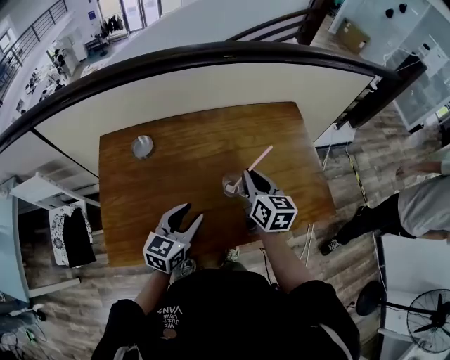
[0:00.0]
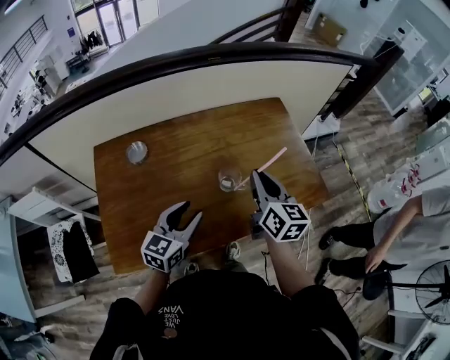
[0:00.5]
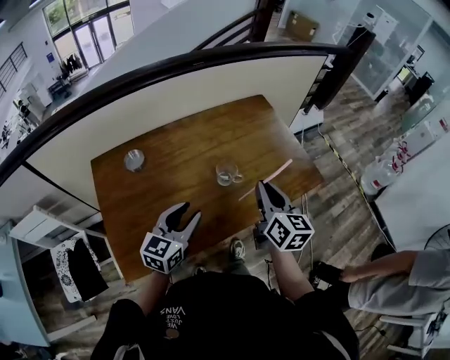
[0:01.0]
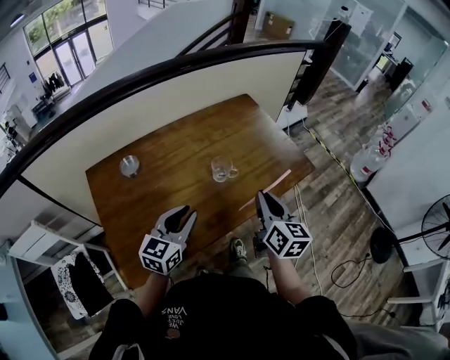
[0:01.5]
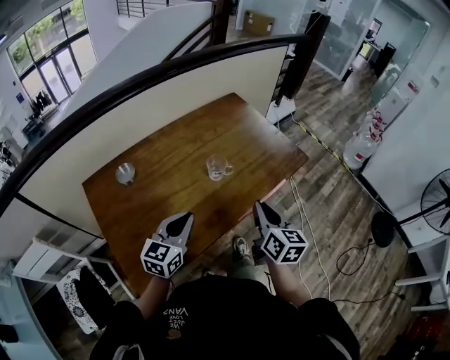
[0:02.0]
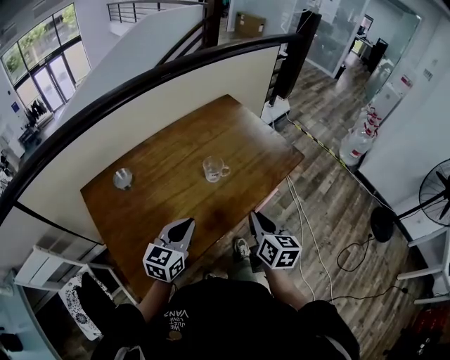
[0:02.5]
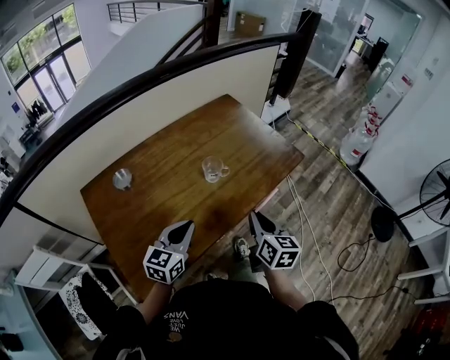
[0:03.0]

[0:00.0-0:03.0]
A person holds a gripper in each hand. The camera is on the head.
0:00.0 to 0:01.5: The left gripper moves backward, roughly 5 cm. Meanwhile the right gripper heads backward, covering approximately 20 cm, and turns by about 30 degrees.
0:01.5 to 0:03.0: The right gripper travels downward and backward by about 10 cm.

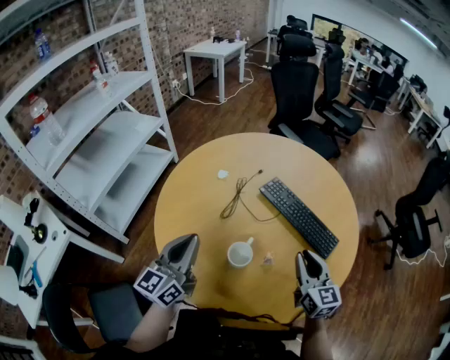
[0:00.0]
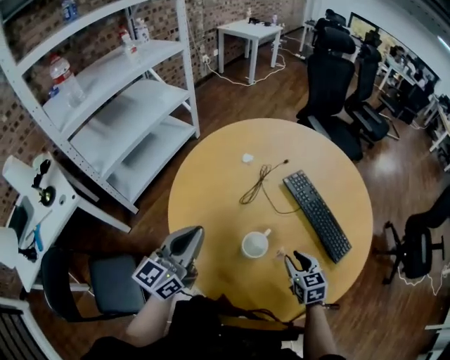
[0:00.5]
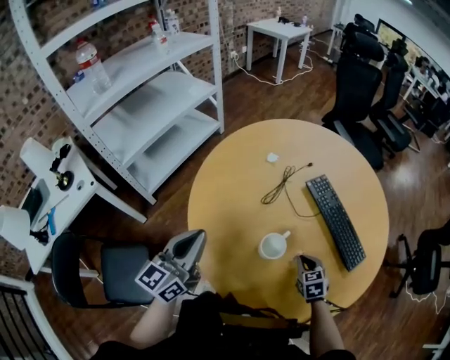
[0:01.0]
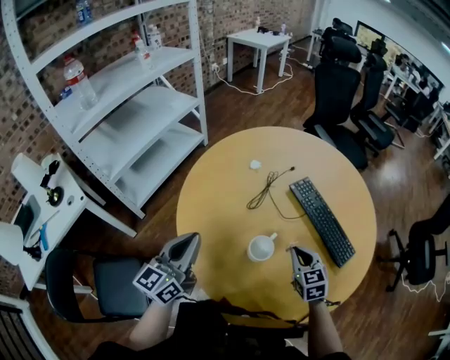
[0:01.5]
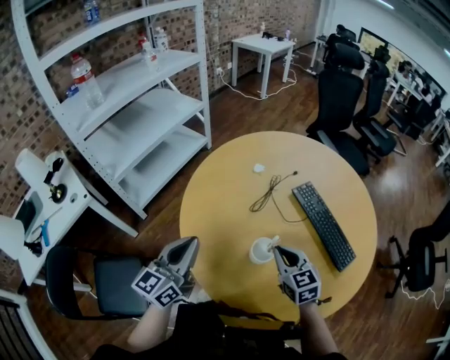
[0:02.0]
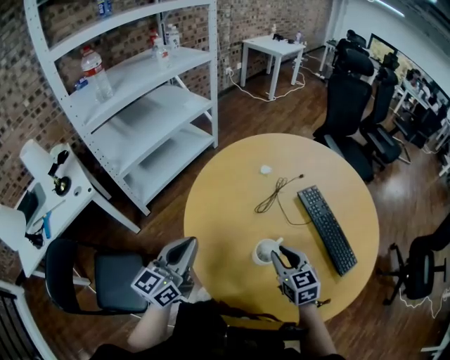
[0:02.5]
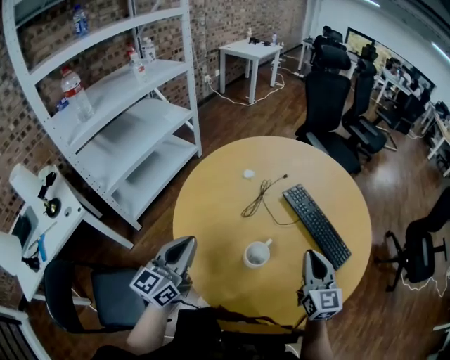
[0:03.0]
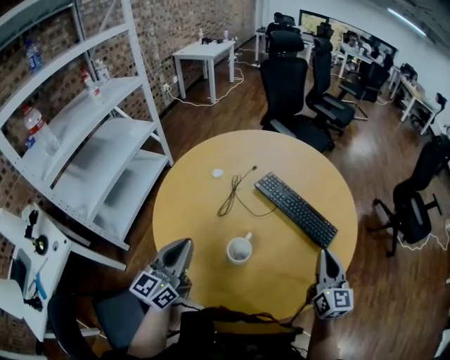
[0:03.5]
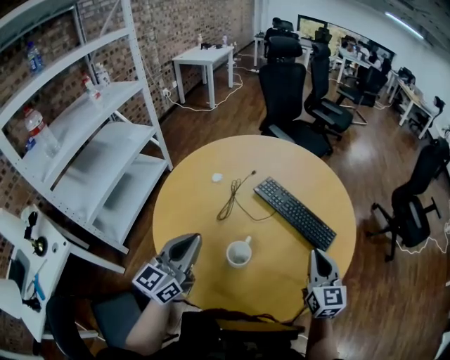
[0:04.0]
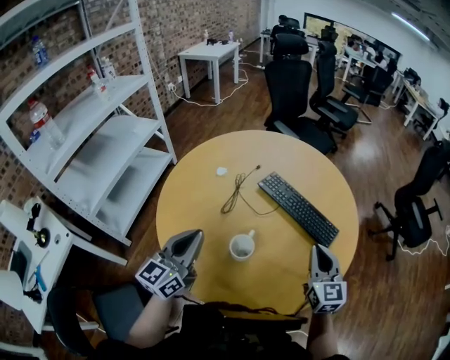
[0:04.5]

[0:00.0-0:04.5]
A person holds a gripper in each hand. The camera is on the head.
0:00.0 to 0:02.0: The right gripper is displaced to the left by roughly 15 cm, goes downward and returns, about 20 cm each way, and changes its angle by about 30 degrees; the left gripper moves to the left, some 5 cm.
0:02.0 to 0:04.5: The left gripper ends up roughly 10 cm from where it was, while the right gripper changes place by some 20 cm, swivels approximately 40 degrees, and opens, then closes once more.

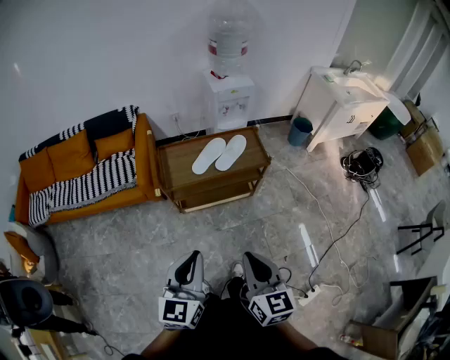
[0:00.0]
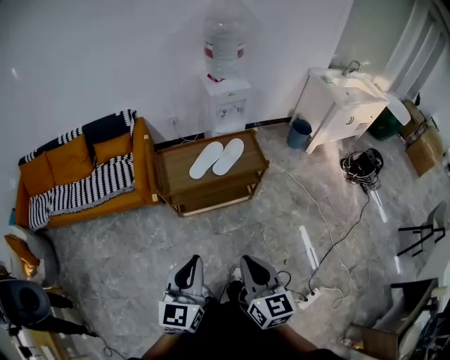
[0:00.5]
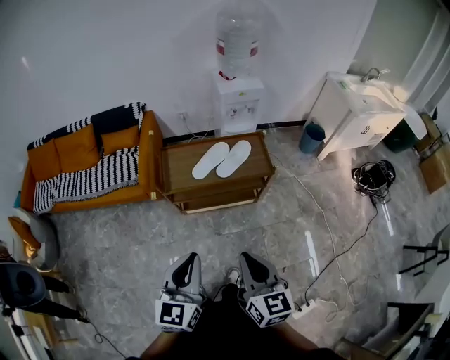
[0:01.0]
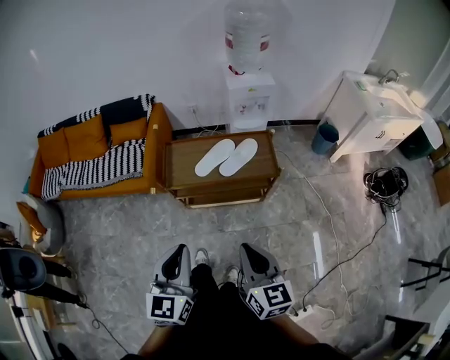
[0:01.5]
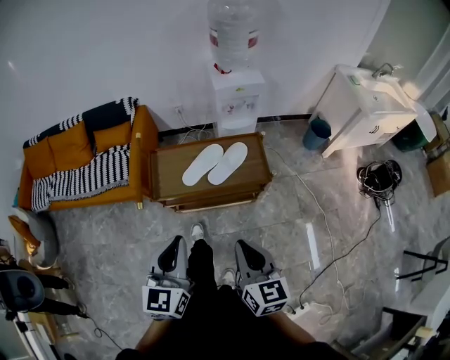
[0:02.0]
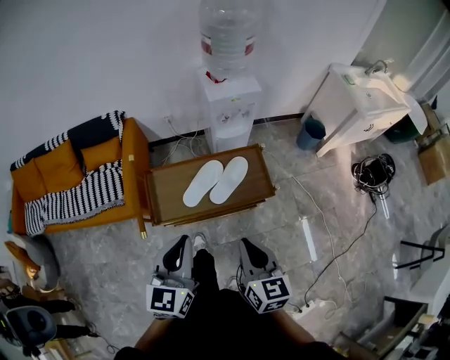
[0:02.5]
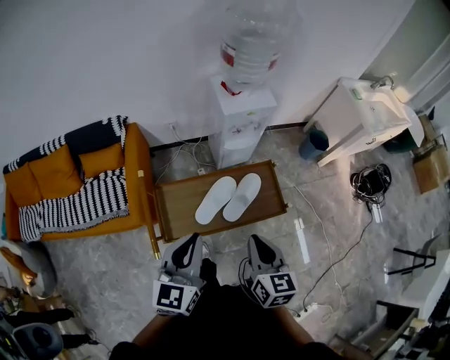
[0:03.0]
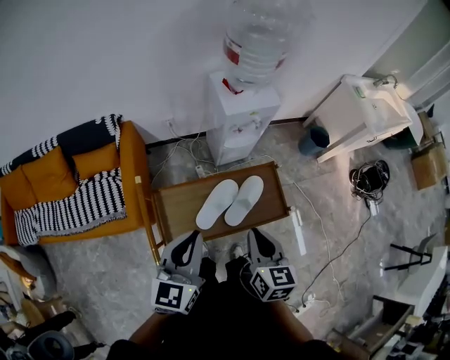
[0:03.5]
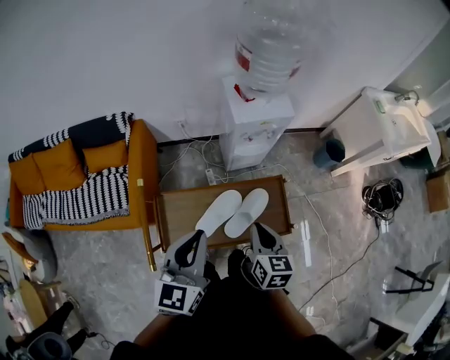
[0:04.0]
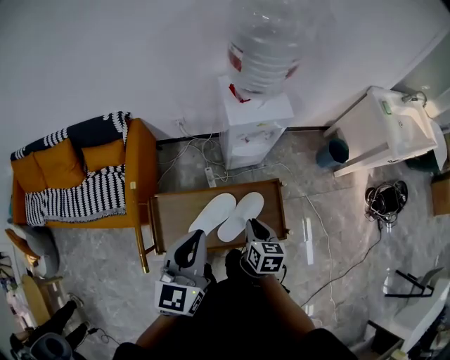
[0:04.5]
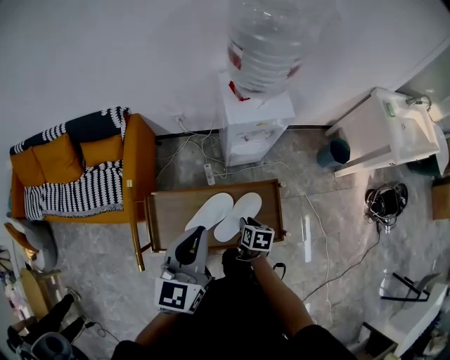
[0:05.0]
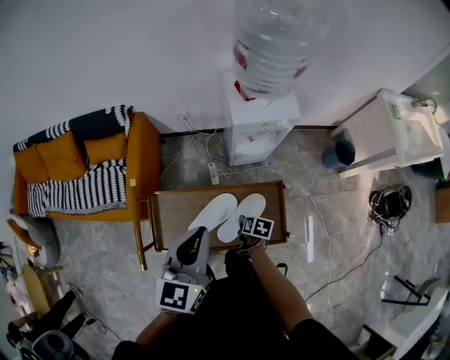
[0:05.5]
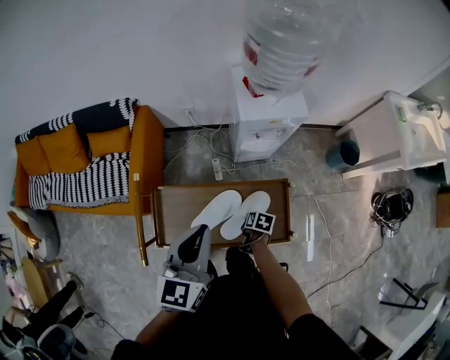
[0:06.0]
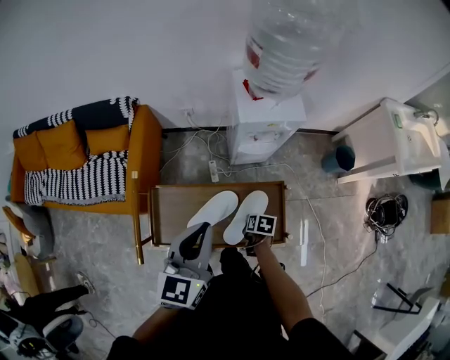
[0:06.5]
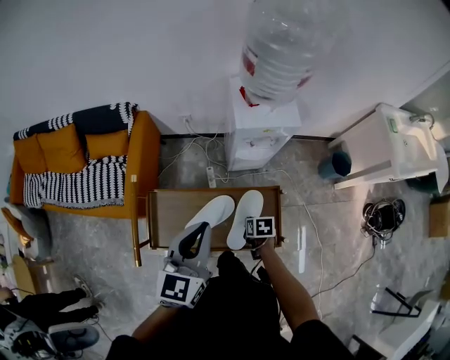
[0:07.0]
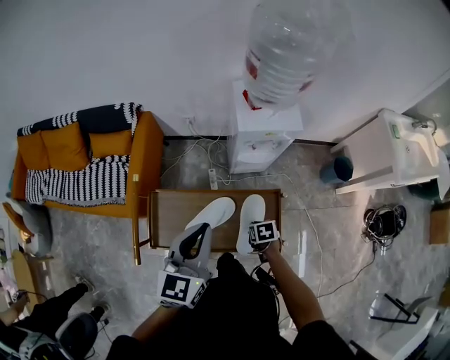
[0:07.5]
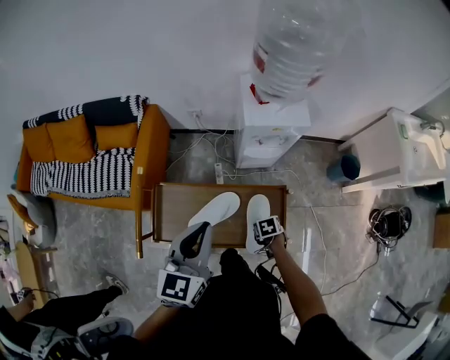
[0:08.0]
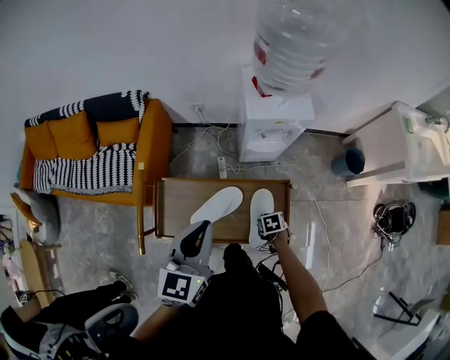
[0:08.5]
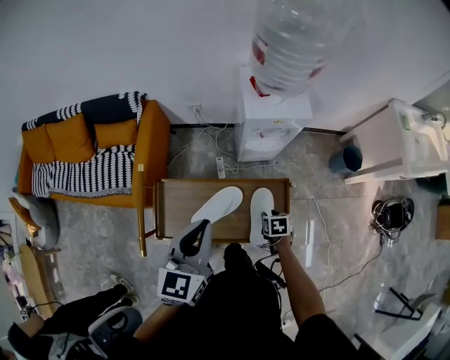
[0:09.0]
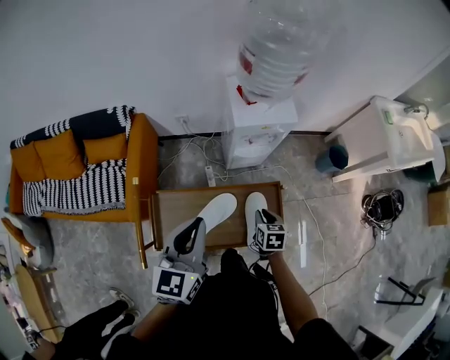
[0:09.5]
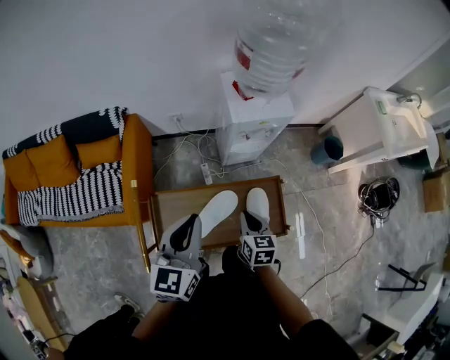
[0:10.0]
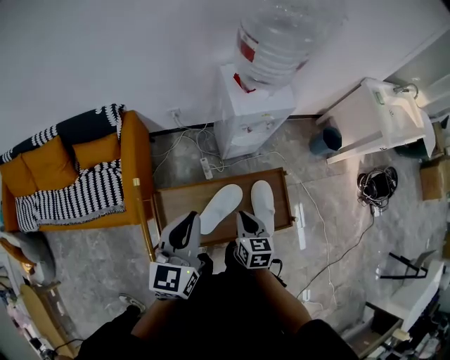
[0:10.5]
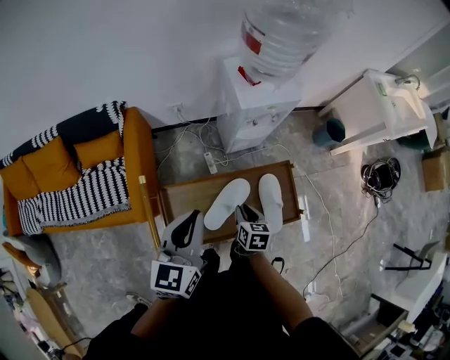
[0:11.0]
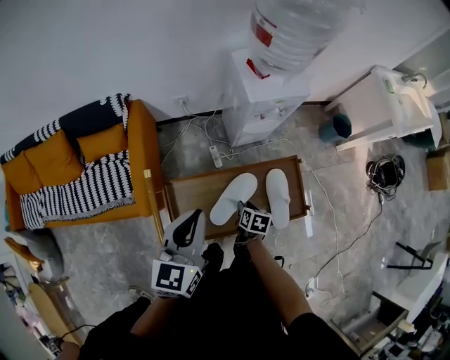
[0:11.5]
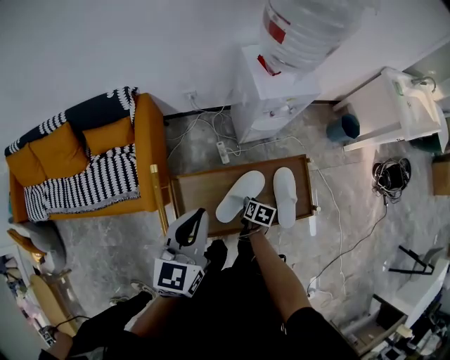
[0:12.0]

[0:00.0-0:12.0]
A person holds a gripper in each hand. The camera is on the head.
0:00.0 to 0:02.0: Both grippers move forward and to the right, roughly 20 cm.
0:02.0 to 0:04.0: The grippers both shift forward by roughly 35 cm.
0:04.0 to 0:06.0: The right gripper shifts roughly 30 cm downward, tips its fingers downward by approximately 40 degrees, and opens and closes again, while the left gripper heads forward, covering some 5 cm.
0:06.0 to 0:08.0: The right gripper changes place by about 5 cm, and changes its angle by some 40 degrees.
0:08.0 to 0:10.0: The right gripper shifts approximately 20 cm upward, angles its fingers upward, by approximately 40 degrees, and opens, then closes once more; the left gripper shifts by some 5 cm.
0:10.0 to 0:12.0: The left gripper shifts about 10 cm to the left. Meanwhile the right gripper shifts roughly 20 cm downward, turns by approximately 40 degrees, and opens.

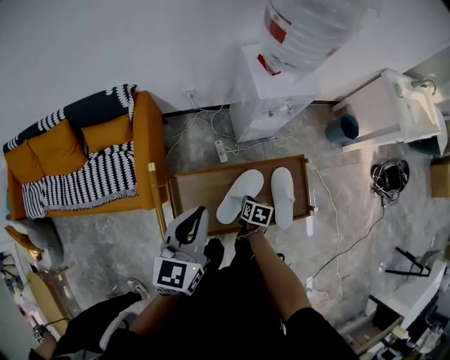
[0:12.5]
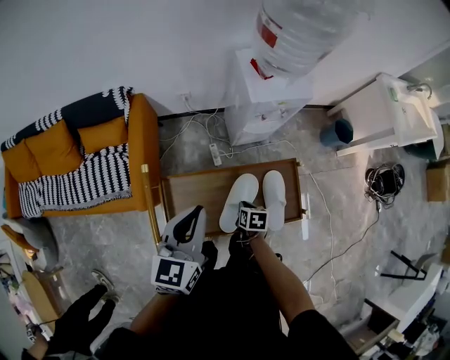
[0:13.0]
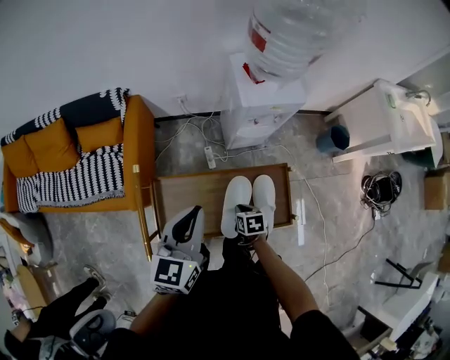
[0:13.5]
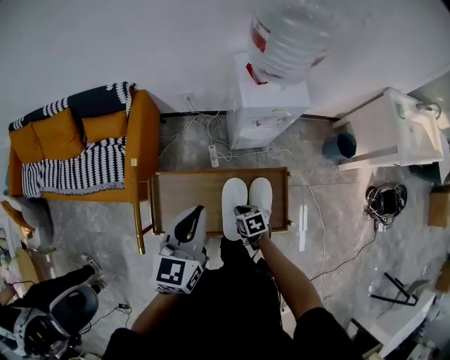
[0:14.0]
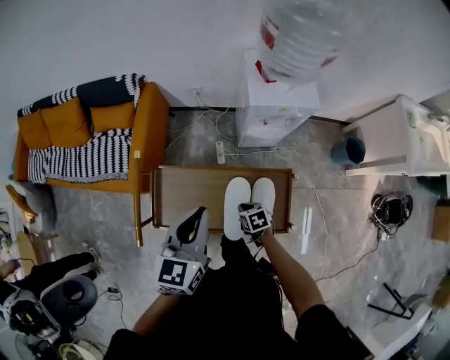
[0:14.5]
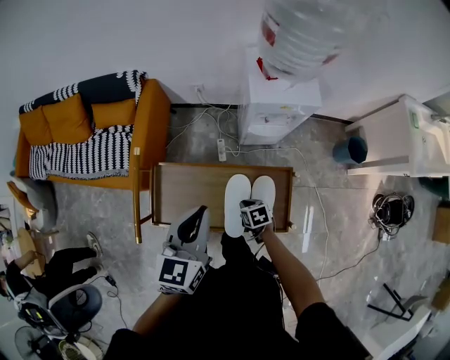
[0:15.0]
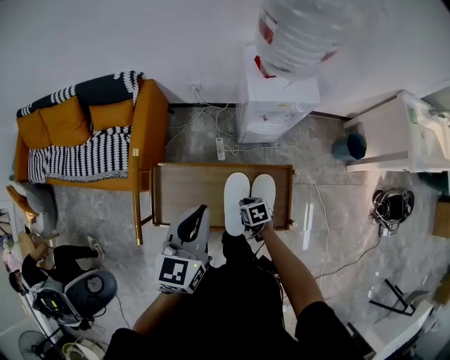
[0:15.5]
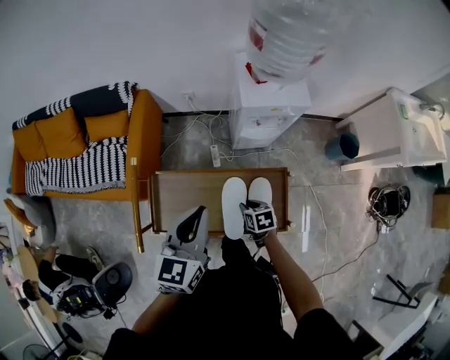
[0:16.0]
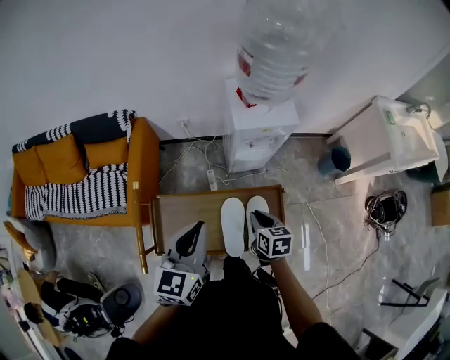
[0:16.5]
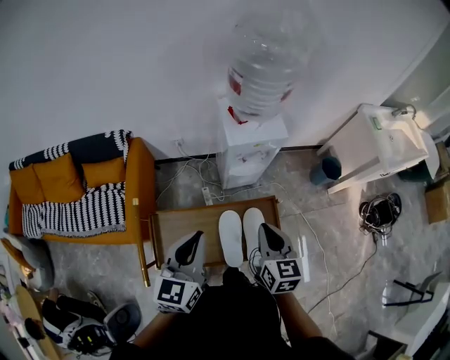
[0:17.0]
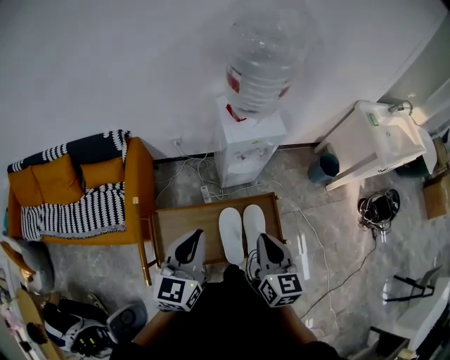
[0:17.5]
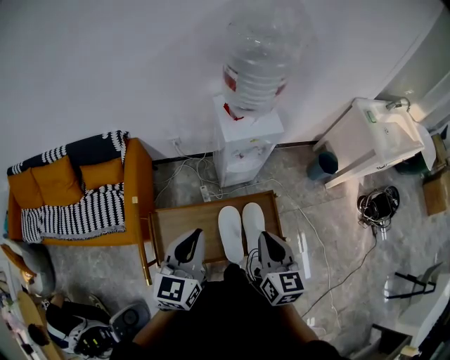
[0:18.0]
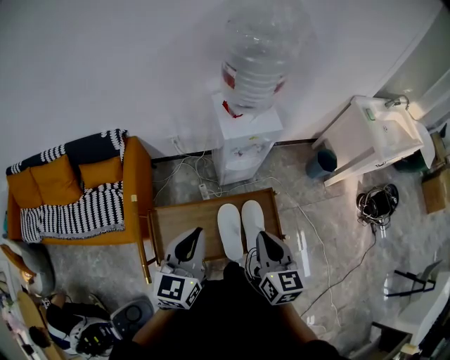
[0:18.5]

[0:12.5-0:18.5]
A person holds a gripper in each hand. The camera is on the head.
0:12.5 to 0:14.5: The right gripper shifts by approximately 5 cm, and twists approximately 40 degrees counterclockwise, seen from behind; the left gripper ends up roughly 10 cm from where it was.
0:14.5 to 0:16.5: The right gripper is displaced upward by approximately 15 cm, and turns by approximately 30 degrees.
0:16.5 to 0:18.5: The right gripper travels upward and backward by roughly 20 cm, and turns by some 30 degrees.
